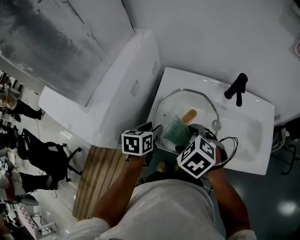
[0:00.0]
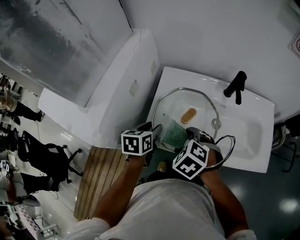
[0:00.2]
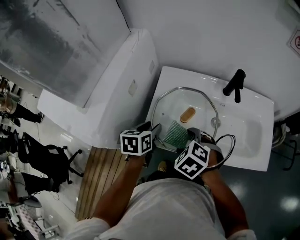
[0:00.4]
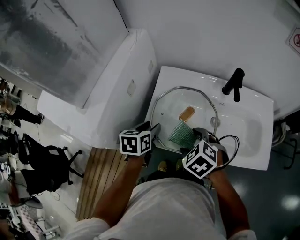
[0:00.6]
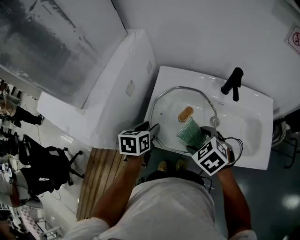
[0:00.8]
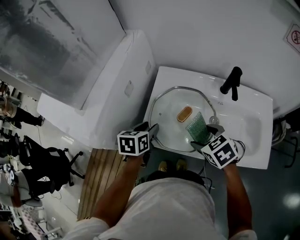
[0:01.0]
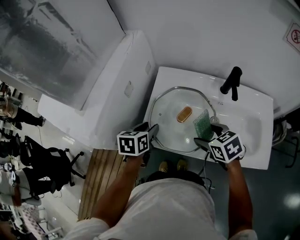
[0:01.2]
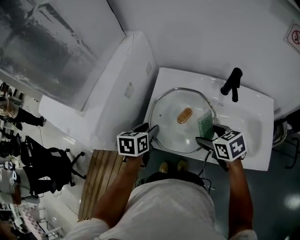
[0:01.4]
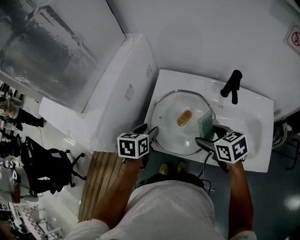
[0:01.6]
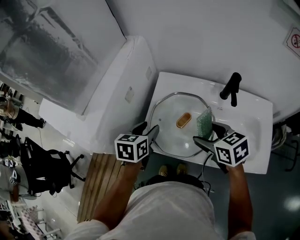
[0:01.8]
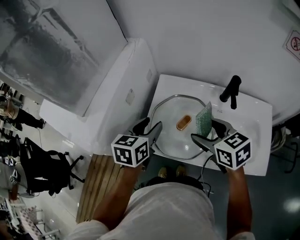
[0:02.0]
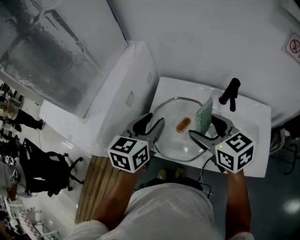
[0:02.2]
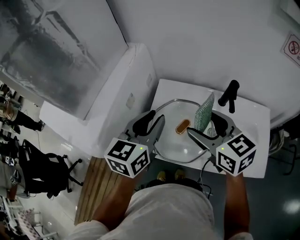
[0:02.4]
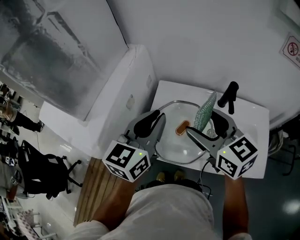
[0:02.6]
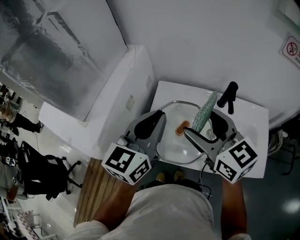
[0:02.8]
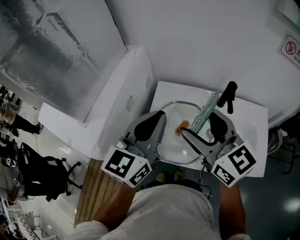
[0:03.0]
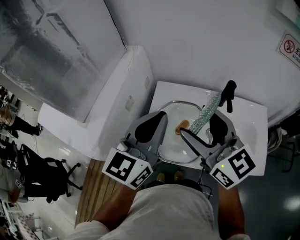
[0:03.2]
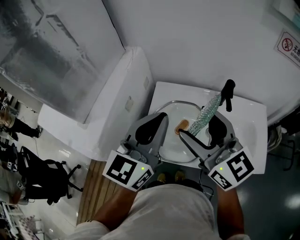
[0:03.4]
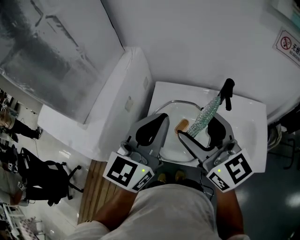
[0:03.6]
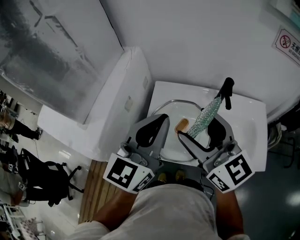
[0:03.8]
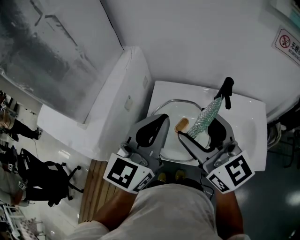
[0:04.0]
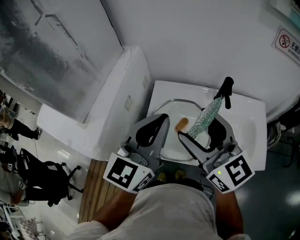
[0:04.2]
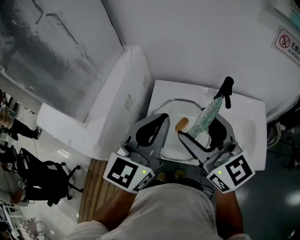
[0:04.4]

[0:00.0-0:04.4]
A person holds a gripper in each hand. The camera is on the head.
0:00.0 to 0:01.4: The right gripper shifts approximately 10 cm to the right, and changes its angle by approximately 40 degrees.
0:01.4 to 0:03.0: The two grippers go some 25 cm upward. The right gripper points its fingers about 40 degrees further upward. The left gripper angles its fingers upward, by about 40 degrees, and closes.
0:03.0 to 0:04.4: The grippers move only a little.

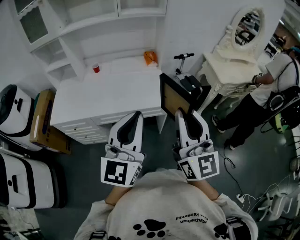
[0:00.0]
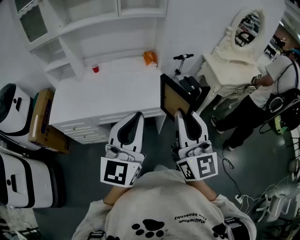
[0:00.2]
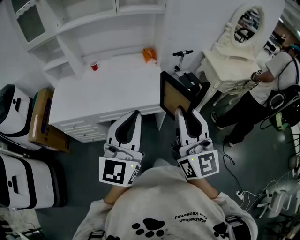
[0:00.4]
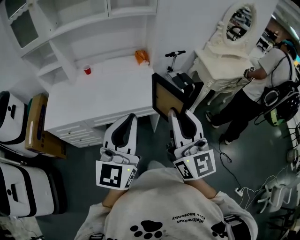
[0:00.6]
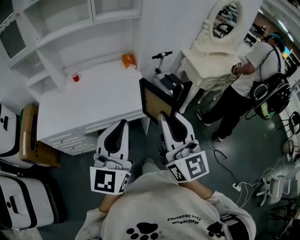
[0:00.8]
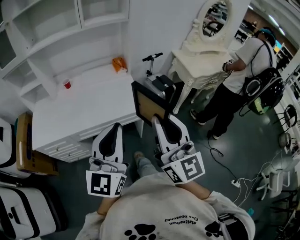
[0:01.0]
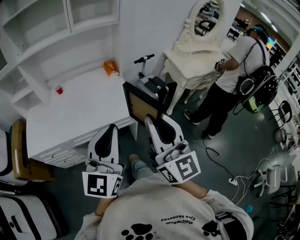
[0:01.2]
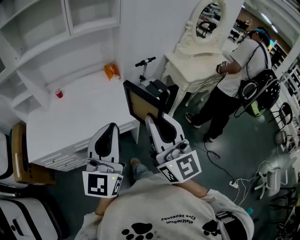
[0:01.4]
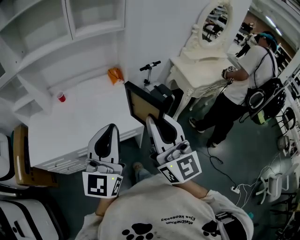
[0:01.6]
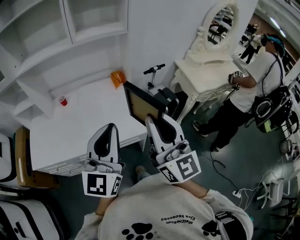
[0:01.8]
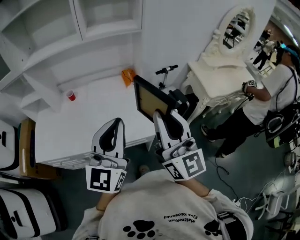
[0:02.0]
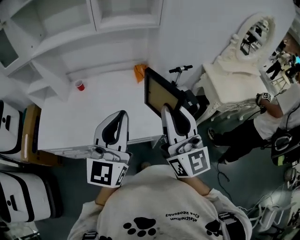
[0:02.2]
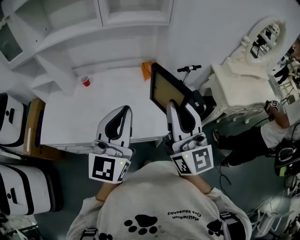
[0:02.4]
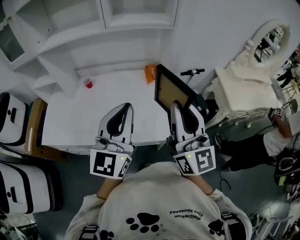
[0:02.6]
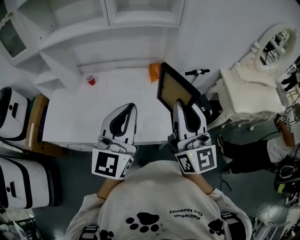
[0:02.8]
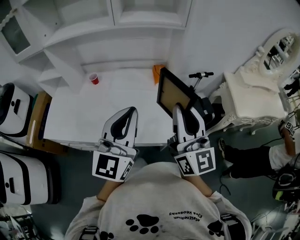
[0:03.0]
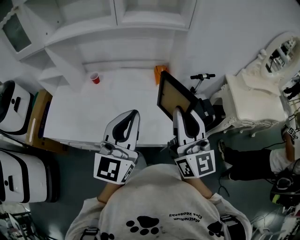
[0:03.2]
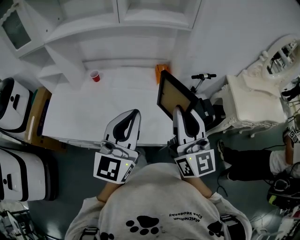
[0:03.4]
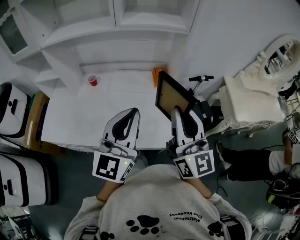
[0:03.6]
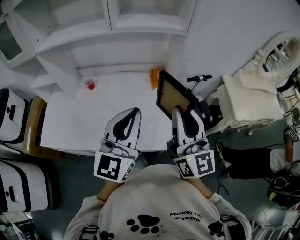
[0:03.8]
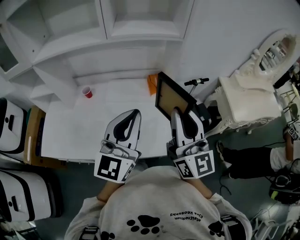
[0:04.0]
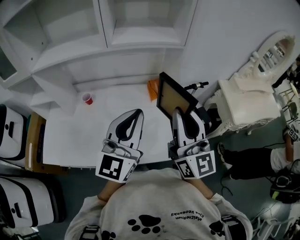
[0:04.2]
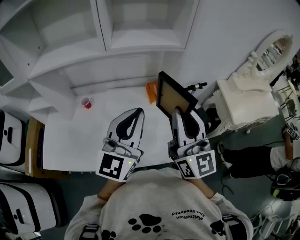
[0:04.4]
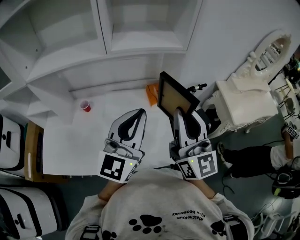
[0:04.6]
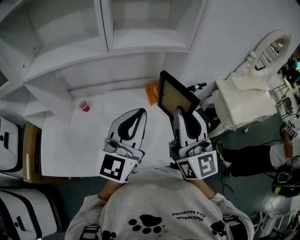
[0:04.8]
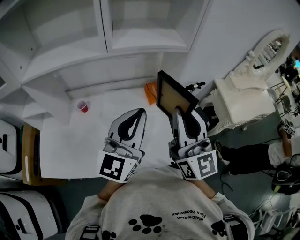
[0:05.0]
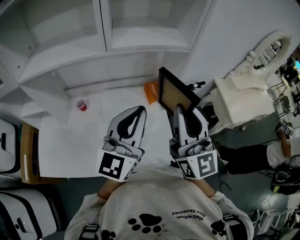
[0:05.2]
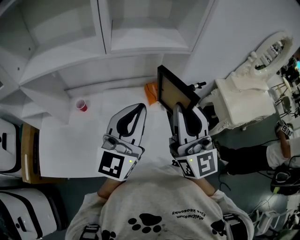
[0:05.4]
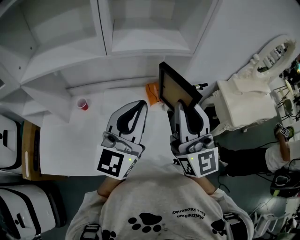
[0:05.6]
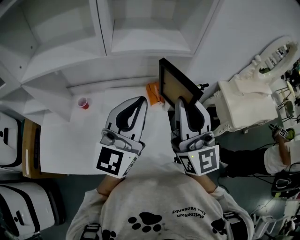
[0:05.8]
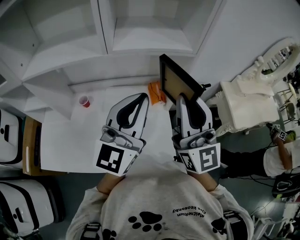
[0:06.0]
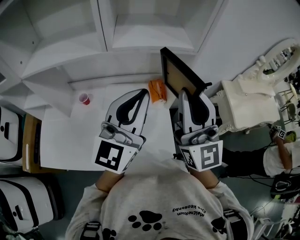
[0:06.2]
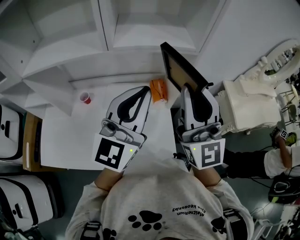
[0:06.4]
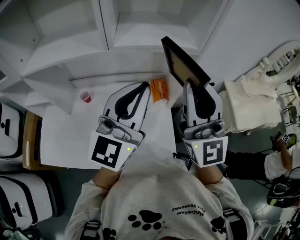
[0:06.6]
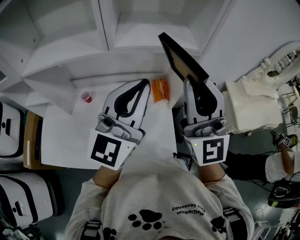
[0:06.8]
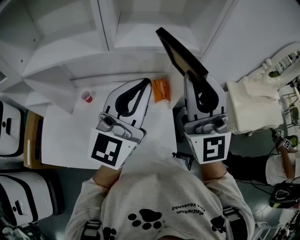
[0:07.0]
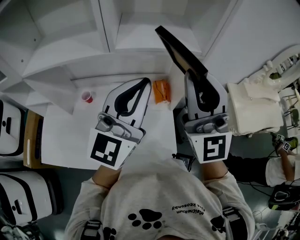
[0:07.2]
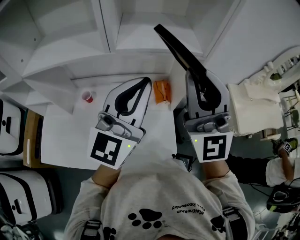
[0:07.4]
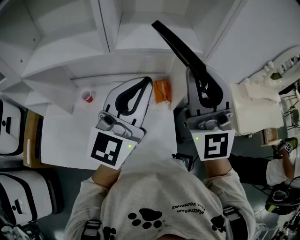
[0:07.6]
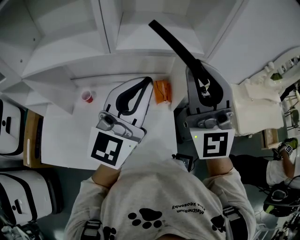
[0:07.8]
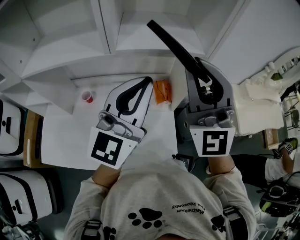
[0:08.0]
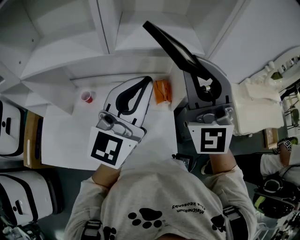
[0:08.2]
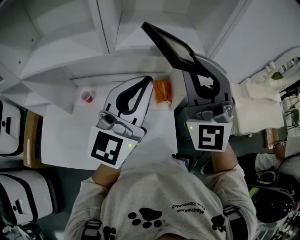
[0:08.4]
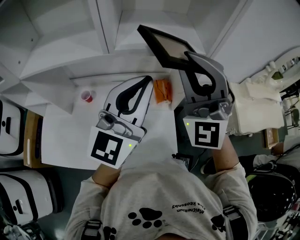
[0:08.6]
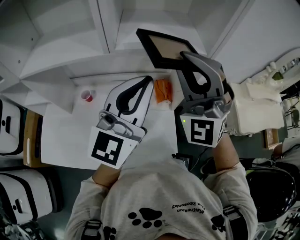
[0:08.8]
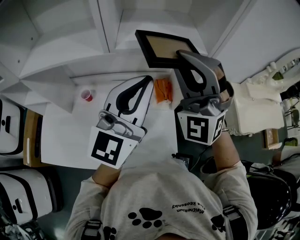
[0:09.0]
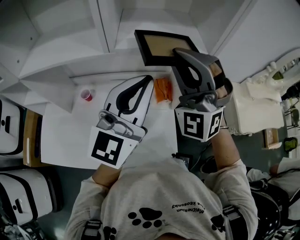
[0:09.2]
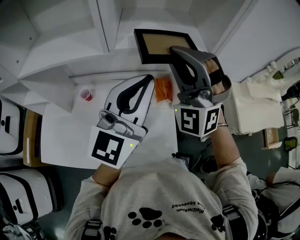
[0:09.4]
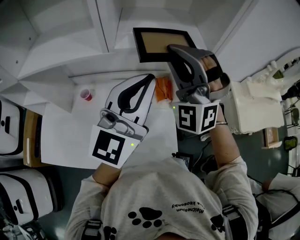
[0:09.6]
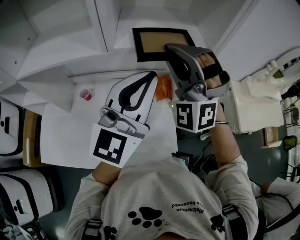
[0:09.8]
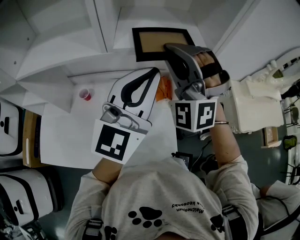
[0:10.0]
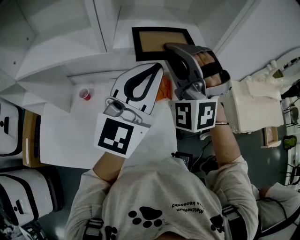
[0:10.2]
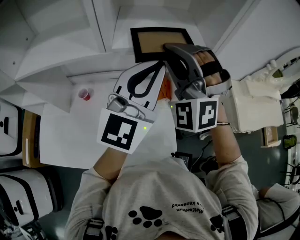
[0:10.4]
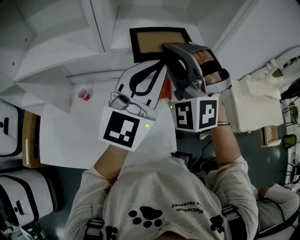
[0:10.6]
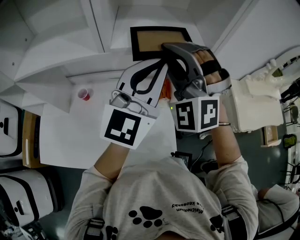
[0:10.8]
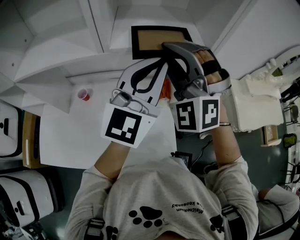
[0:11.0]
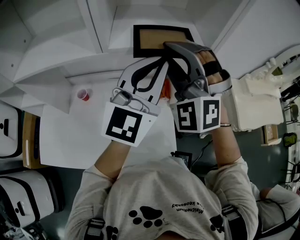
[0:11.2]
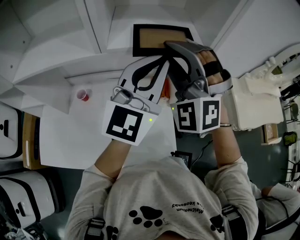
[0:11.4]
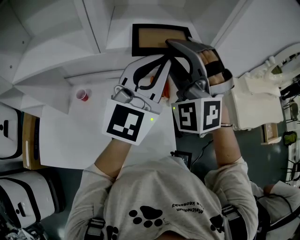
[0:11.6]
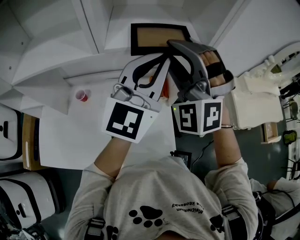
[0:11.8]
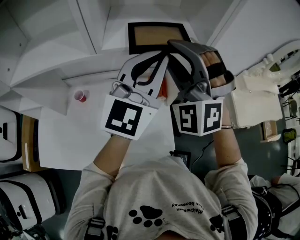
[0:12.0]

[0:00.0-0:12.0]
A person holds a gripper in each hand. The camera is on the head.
0:00.0 to 0:01.6: The two grippers go roughly 15 cm forward.
0:01.6 to 0:03.0: The grippers both shift forward by approximately 20 cm.
0:03.0 to 0:04.4: The grippers both shift forward by approximately 10 cm.
0:04.4 to 0:06.0: The grippers both shift forward by approximately 5 cm.
0:06.0 to 0:07.6: The right gripper is displaced upward and forward by roughly 10 cm, and swivels some 30 degrees. Meanwhile the left gripper changes place by some 5 cm.
0:07.6 to 0:09.0: The right gripper travels forward by roughly 5 cm, and turns by roughly 40 degrees.
0:09.0 to 0:10.4: The left gripper moves some 5 cm, while the right gripper shifts by about 5 cm.
0:10.4 to 0:12.0: The right gripper opens up.

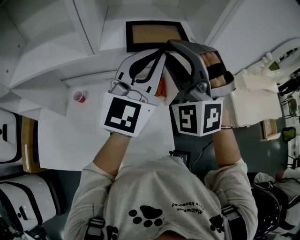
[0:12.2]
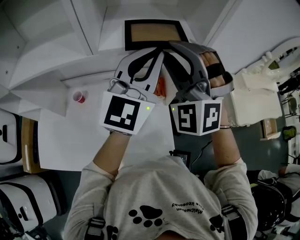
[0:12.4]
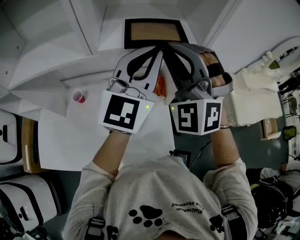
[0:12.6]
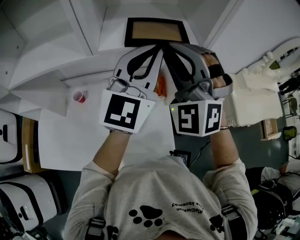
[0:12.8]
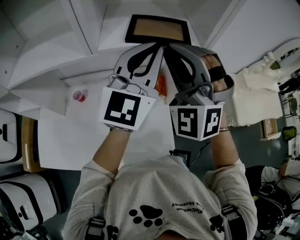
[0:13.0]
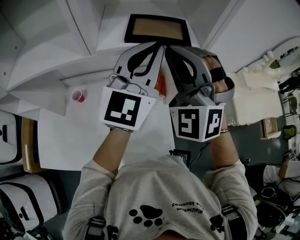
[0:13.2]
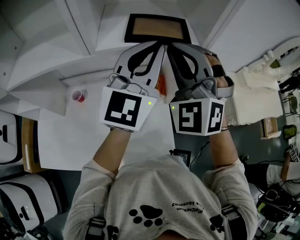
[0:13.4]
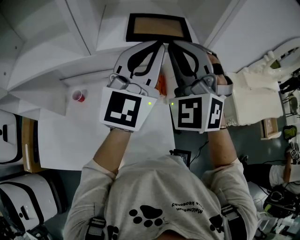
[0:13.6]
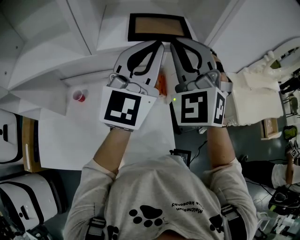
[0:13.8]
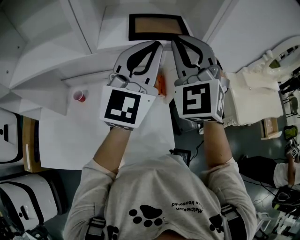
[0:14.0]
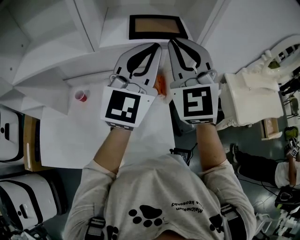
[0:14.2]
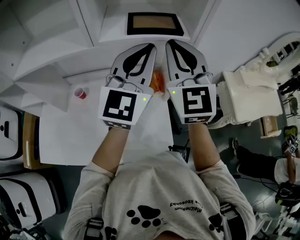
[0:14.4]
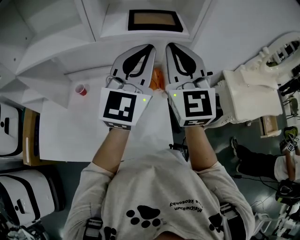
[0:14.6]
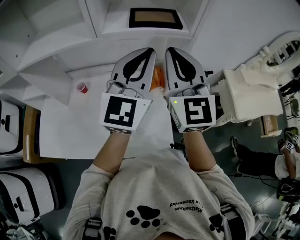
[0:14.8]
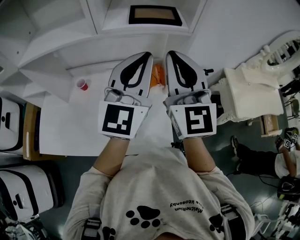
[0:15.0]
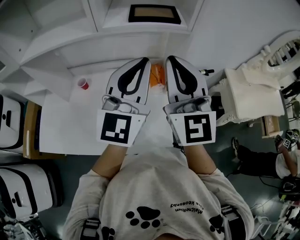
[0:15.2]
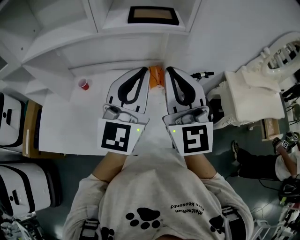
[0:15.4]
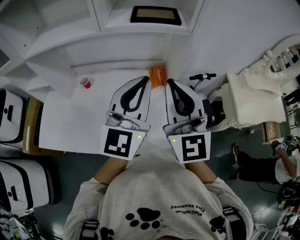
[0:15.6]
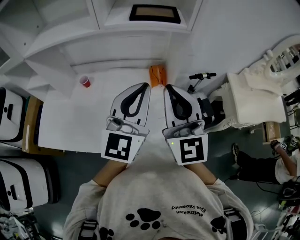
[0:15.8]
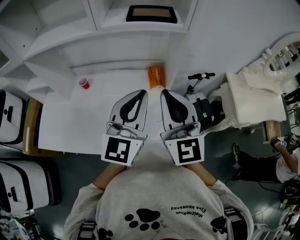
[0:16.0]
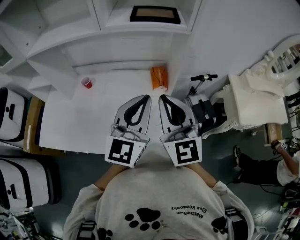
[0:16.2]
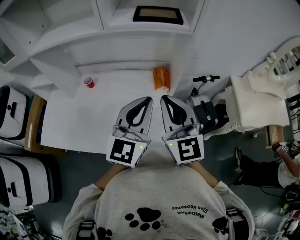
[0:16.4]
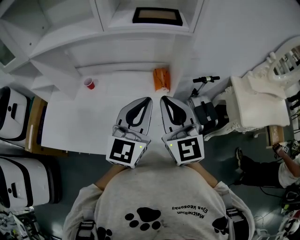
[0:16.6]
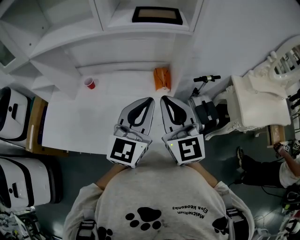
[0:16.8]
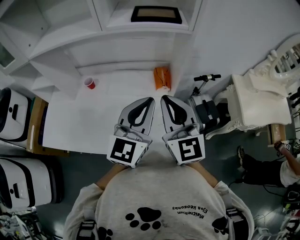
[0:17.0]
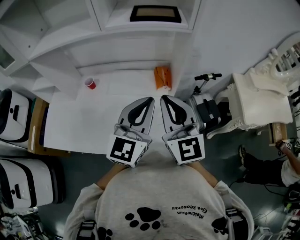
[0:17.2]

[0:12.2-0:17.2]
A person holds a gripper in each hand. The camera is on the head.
0:12.2 to 0:13.8: The right gripper swivels roughly 20 degrees, and closes its fingers.
0:13.8 to 0:15.6: Both grippers move backward, some 20 cm. The right gripper rotates around the line of its fingers by roughly 40 degrees, clockwise from behind.
0:15.6 to 0:17.2: Both grippers travel together downward, approximately 10 cm.

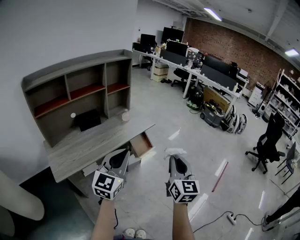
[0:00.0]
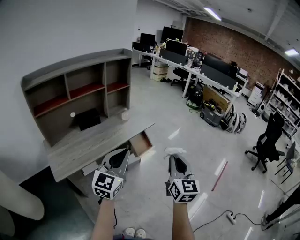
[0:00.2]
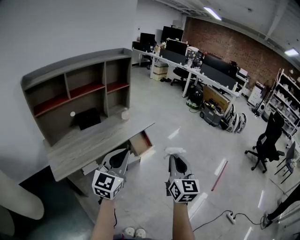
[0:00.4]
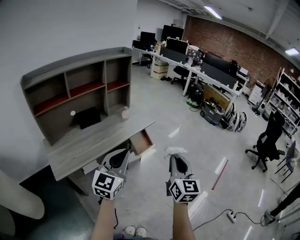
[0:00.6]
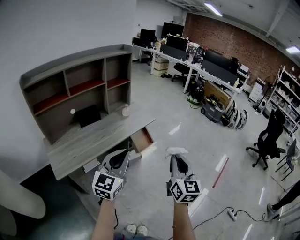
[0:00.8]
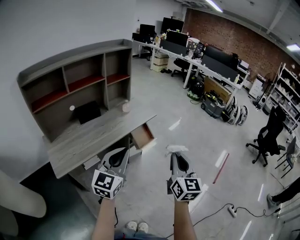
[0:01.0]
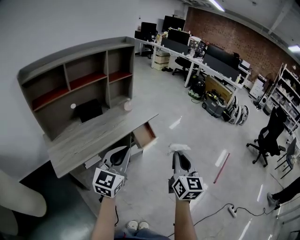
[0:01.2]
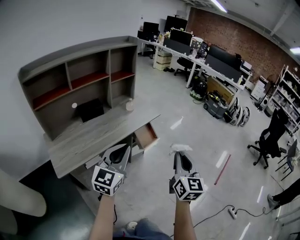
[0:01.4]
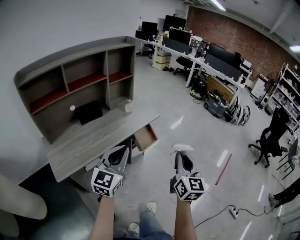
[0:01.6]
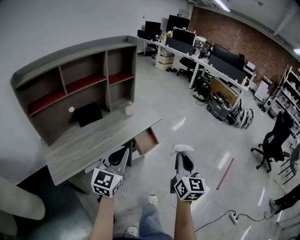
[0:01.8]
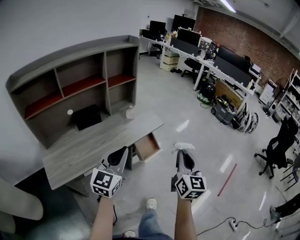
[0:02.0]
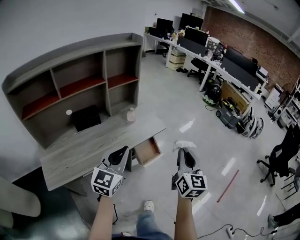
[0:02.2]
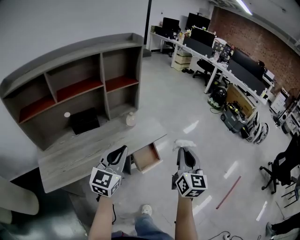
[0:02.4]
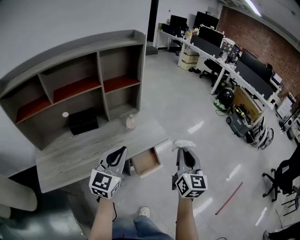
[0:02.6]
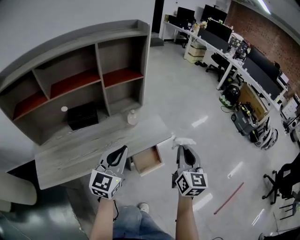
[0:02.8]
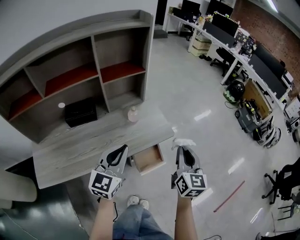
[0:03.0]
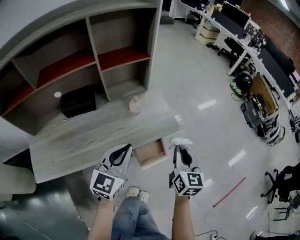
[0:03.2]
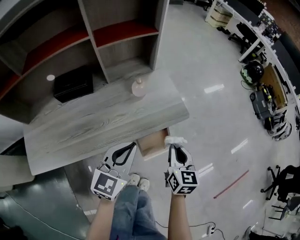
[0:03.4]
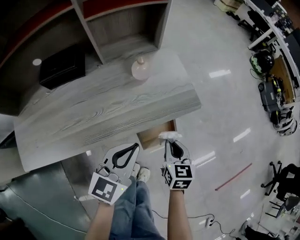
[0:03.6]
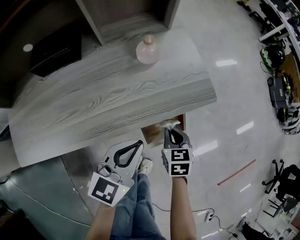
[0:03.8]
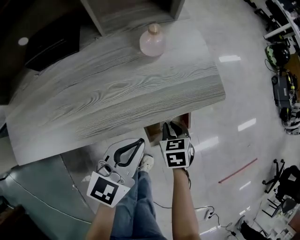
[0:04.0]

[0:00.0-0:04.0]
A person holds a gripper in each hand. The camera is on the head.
0:00.0 to 0:01.4: The left gripper moves some 5 cm.
0:01.4 to 0:02.6: Both grippers move forward, some 35 cm.
0:02.6 to 0:04.0: The left gripper travels downward by about 30 cm, and rotates about 30 degrees; the right gripper moves downward, some 50 cm, and tips its fingers downward by roughly 60 degrees.
